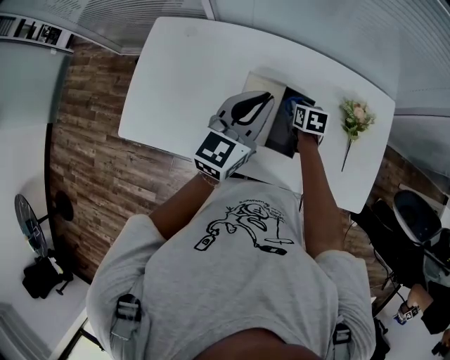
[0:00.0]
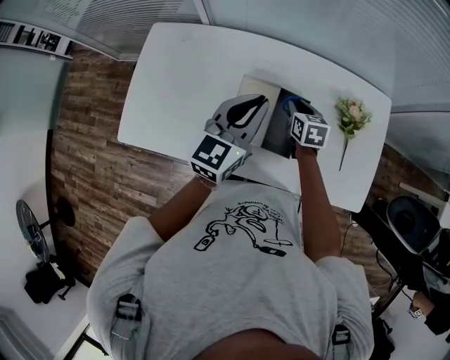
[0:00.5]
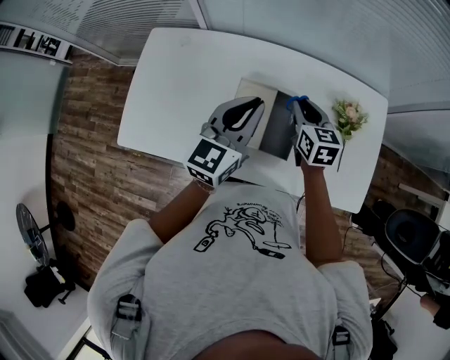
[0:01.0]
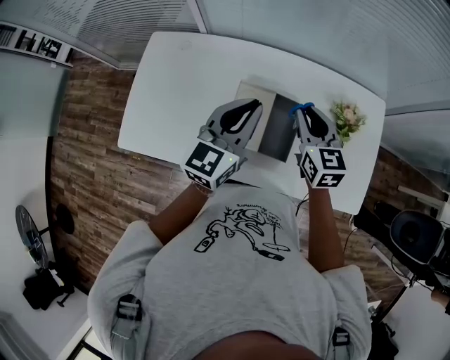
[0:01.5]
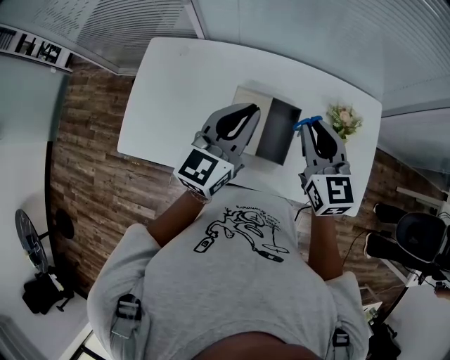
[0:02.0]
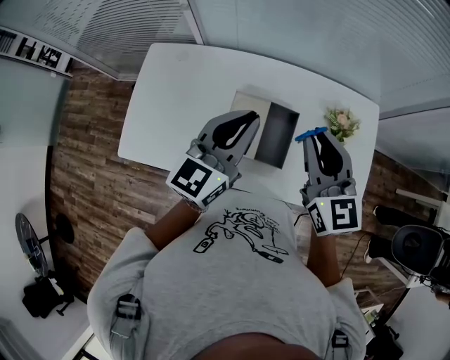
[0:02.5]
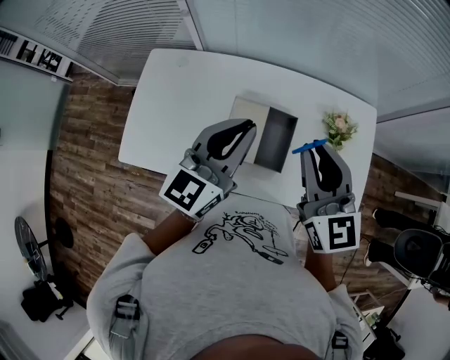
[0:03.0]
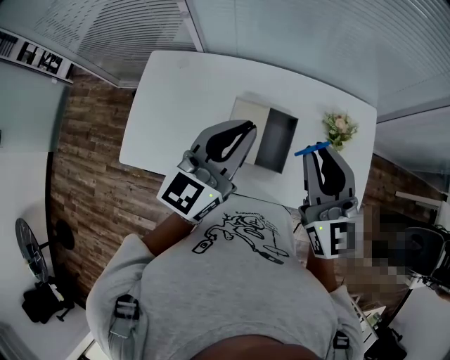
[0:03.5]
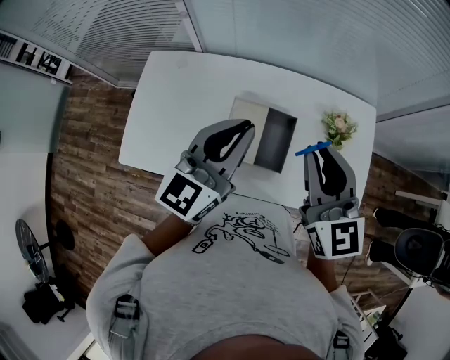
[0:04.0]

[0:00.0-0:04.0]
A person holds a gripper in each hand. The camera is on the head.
0.0 to 2.0 s: The left gripper goes roughly 5 cm upward. The right gripper goes some 30 cm upward, and angles its fingers upward, by about 40 degrees.
2.0 to 4.0 s: The right gripper moves upward and backward, roughly 10 cm, while the left gripper heads upward, covering roughly 5 cm.

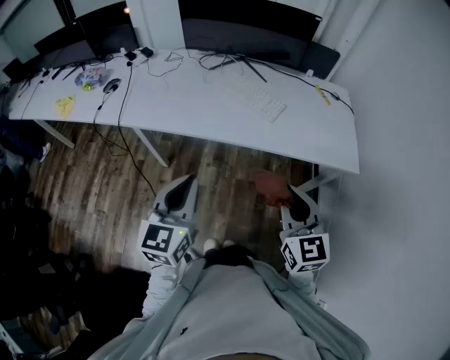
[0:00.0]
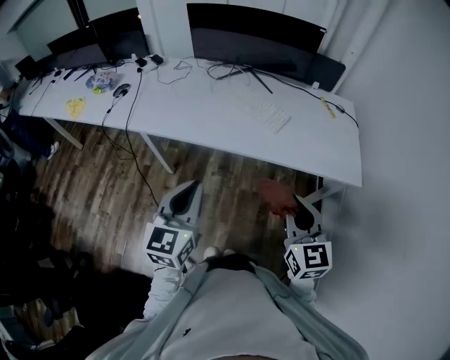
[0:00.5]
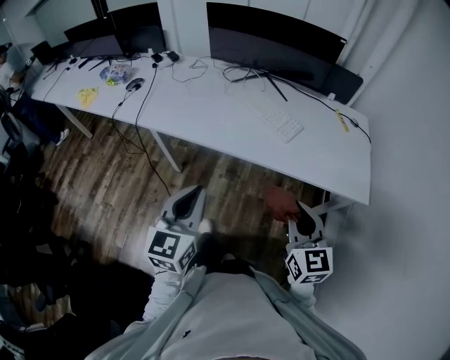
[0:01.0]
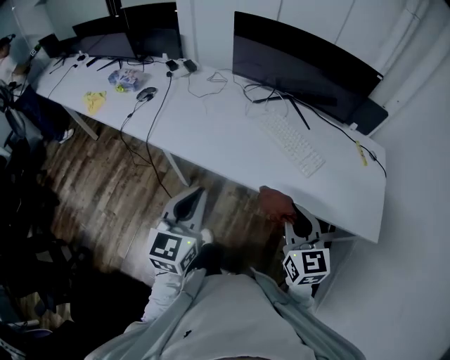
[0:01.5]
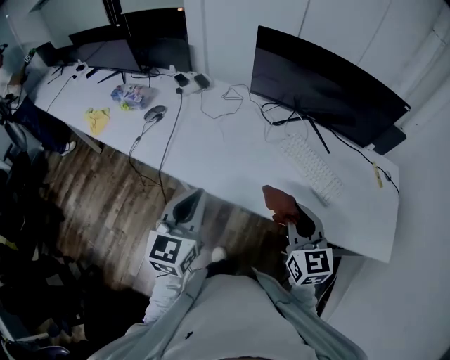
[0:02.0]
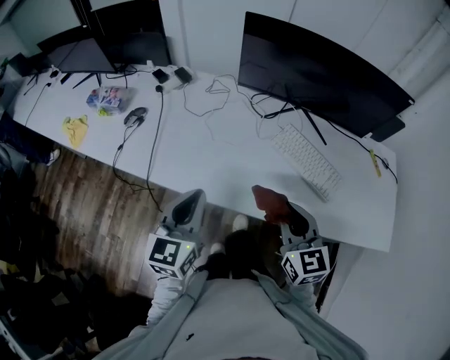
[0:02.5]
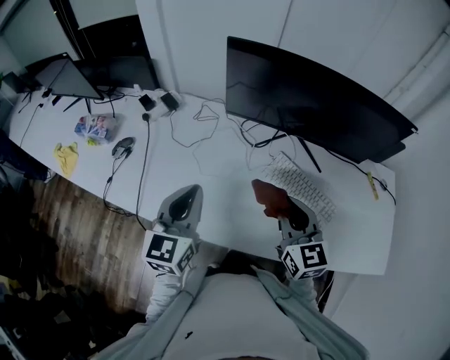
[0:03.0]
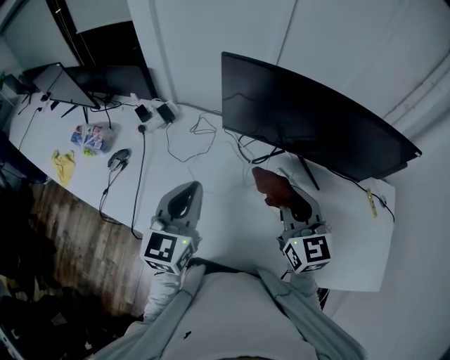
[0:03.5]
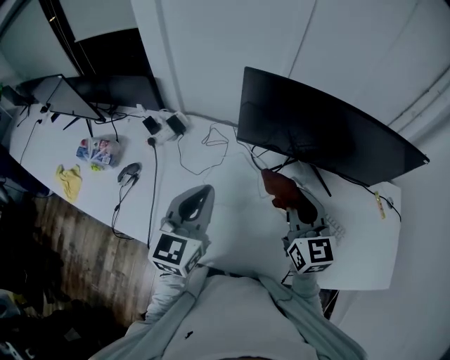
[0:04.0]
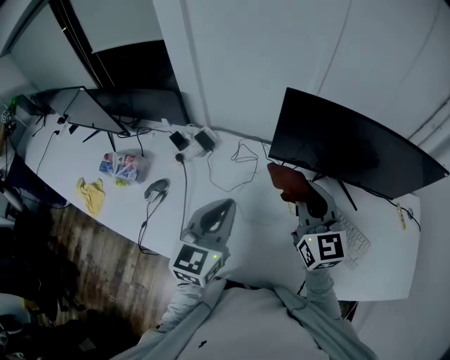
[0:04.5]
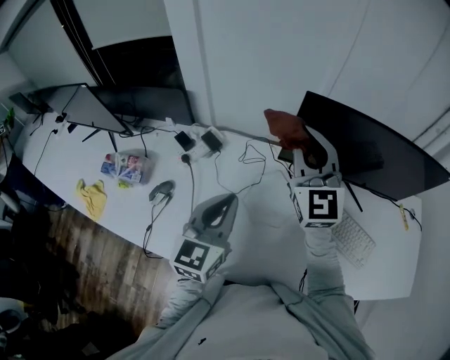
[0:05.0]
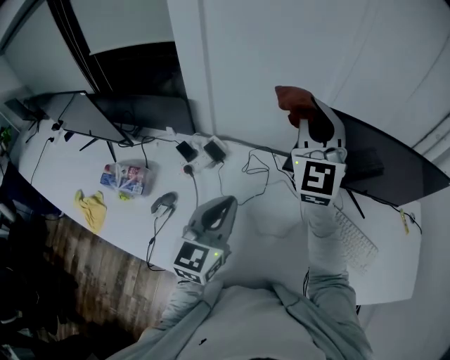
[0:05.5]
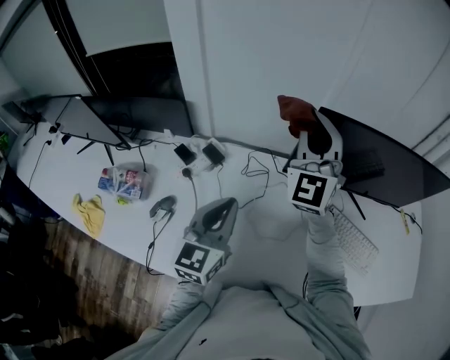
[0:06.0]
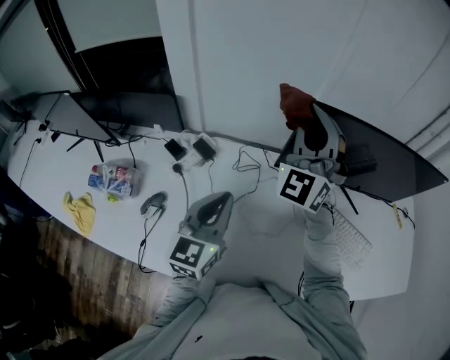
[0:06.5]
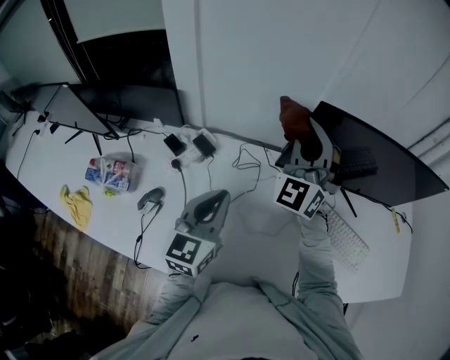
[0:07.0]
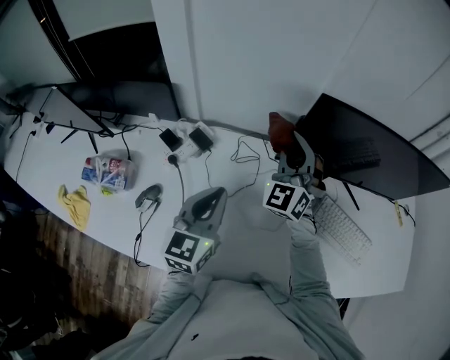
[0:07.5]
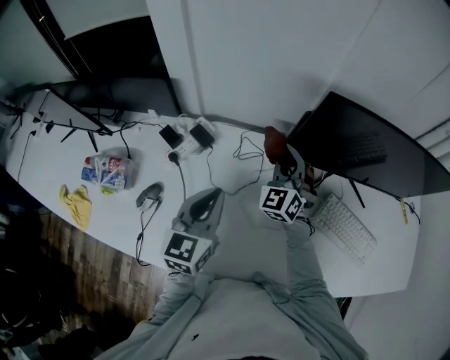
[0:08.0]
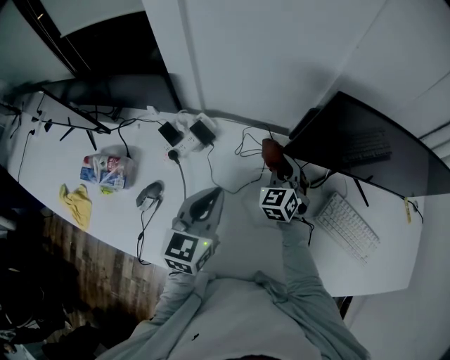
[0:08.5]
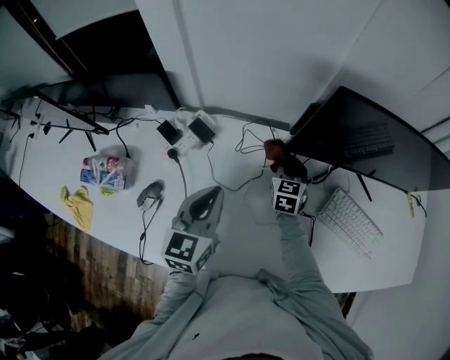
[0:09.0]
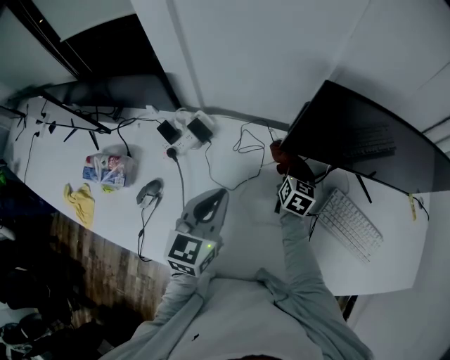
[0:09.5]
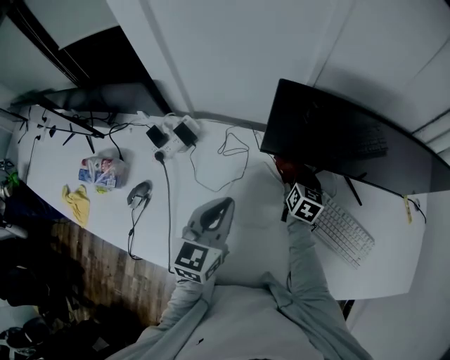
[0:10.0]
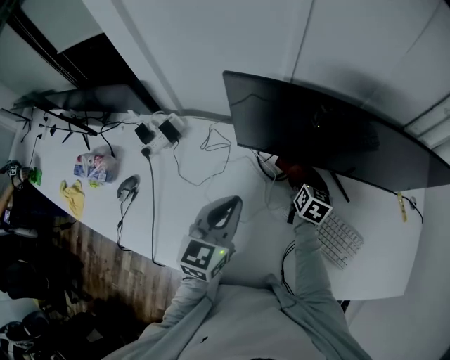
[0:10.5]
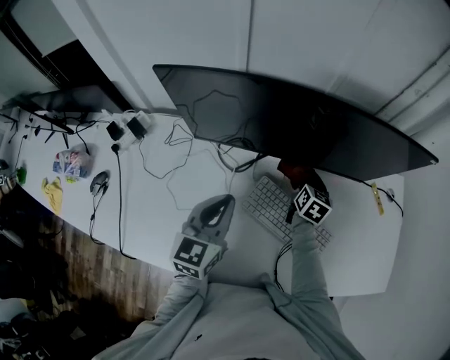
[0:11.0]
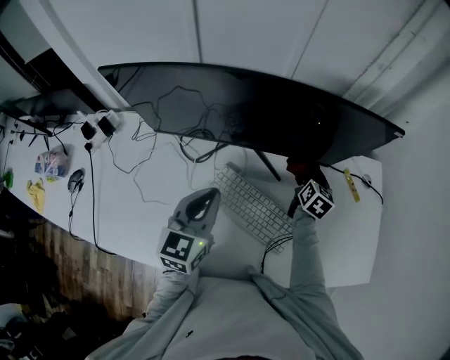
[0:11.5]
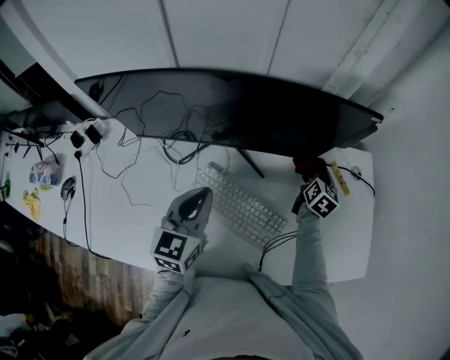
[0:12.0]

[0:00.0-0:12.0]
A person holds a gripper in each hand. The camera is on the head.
0.0 to 2.0 s: Both grippers move forward and to the left, some 30 cm.
2.0 to 4.0 s: Both grippers move forward, about 30 cm.
4.0 to 6.0 s: The left gripper is displaced to the left and forward by some 15 cm. The right gripper travels to the left, forward and upward by about 30 cm, and swivels approximately 50 degrees.
6.0 to 8.0 s: The right gripper goes approximately 25 cm downward, and changes its angle by roughly 30 degrees, while the left gripper travels downward by some 5 cm.
8.0 to 10.0 s: The right gripper goes approximately 20 cm to the right and downward, and twists some 60 degrees clockwise, seen from behind. Meanwhile the left gripper moves to the right, some 10 cm.
10.0 to 12.0 s: Both grippers travel together to the right, roughly 40 cm.

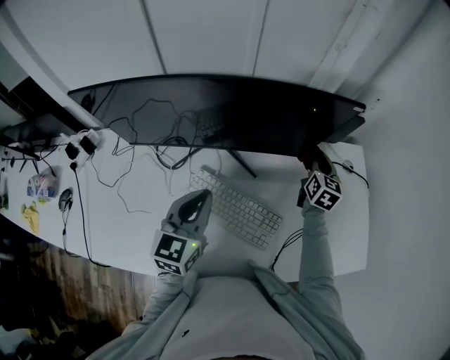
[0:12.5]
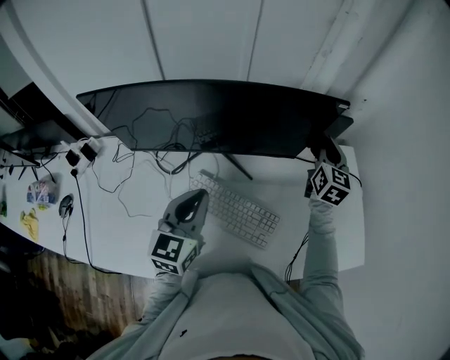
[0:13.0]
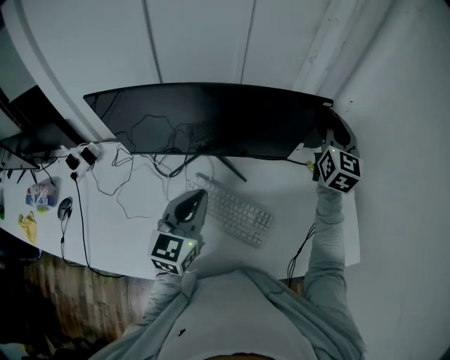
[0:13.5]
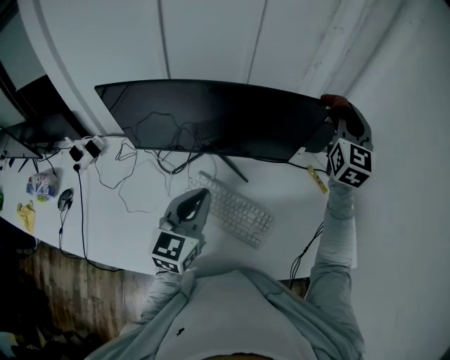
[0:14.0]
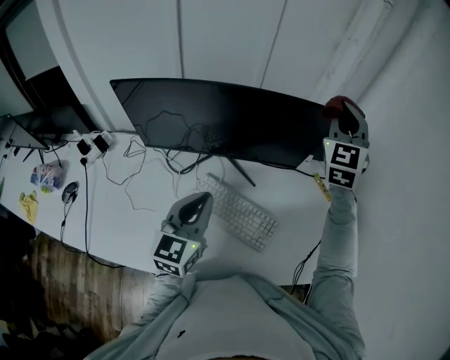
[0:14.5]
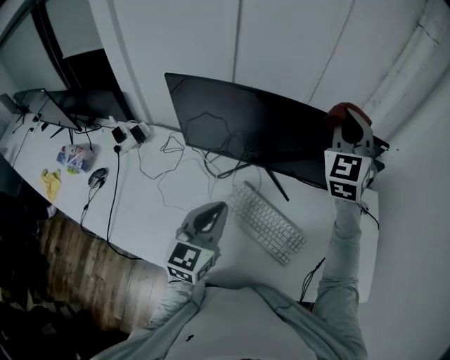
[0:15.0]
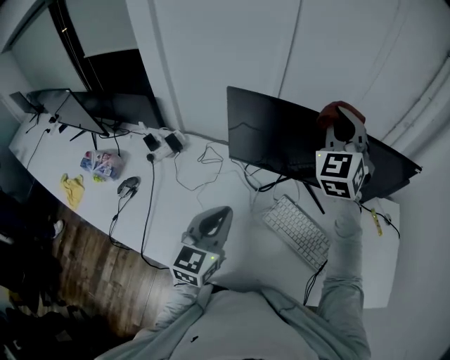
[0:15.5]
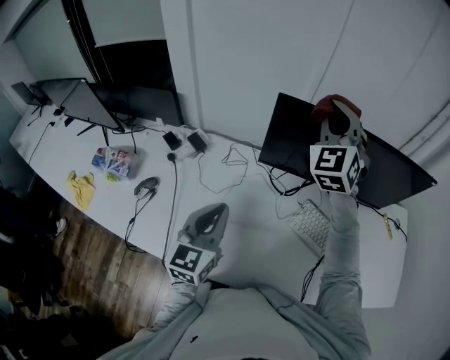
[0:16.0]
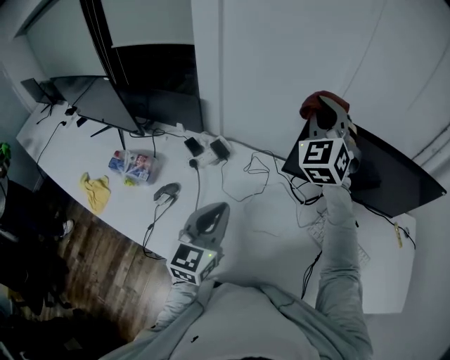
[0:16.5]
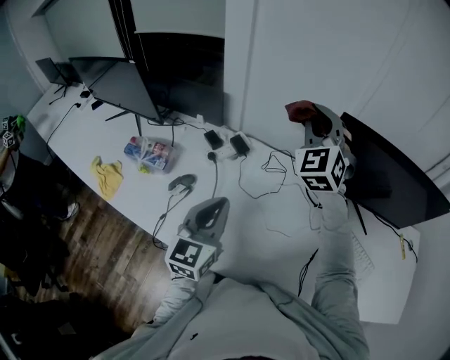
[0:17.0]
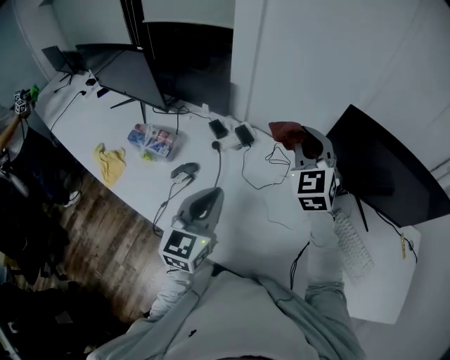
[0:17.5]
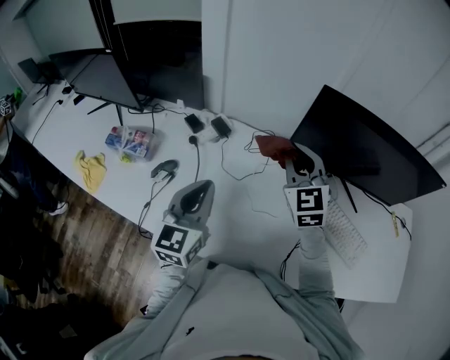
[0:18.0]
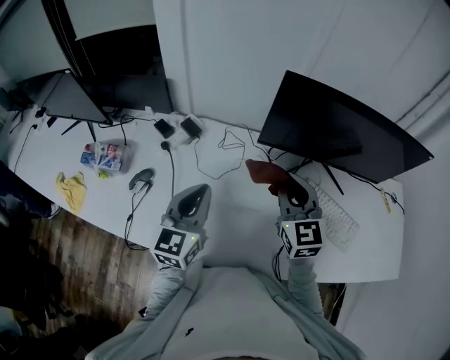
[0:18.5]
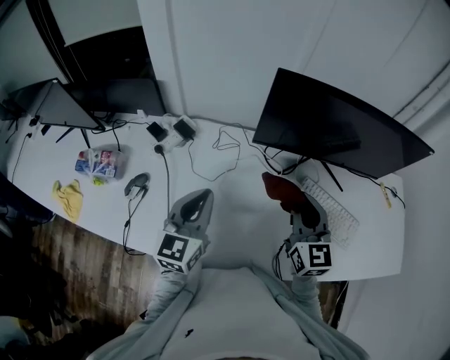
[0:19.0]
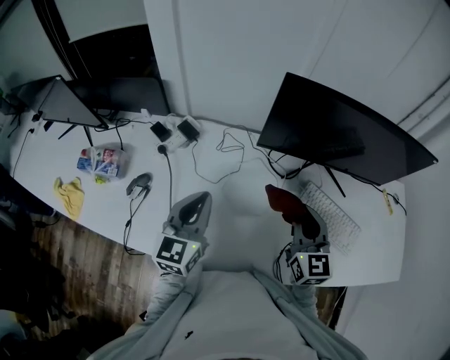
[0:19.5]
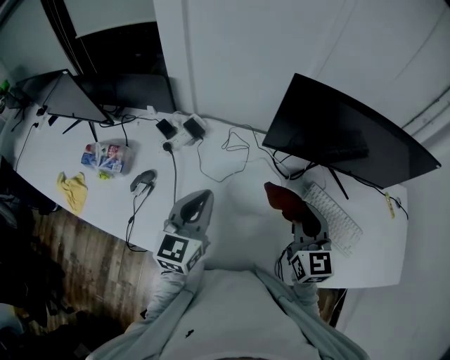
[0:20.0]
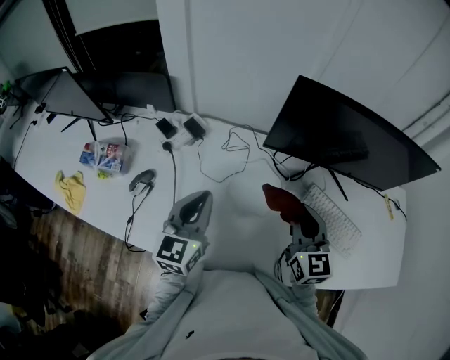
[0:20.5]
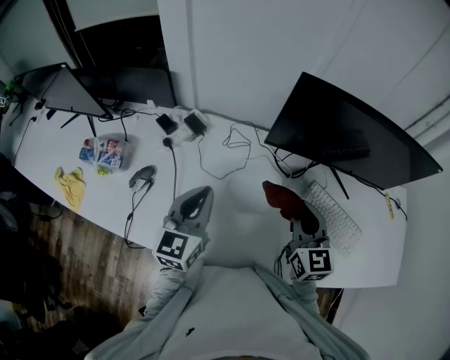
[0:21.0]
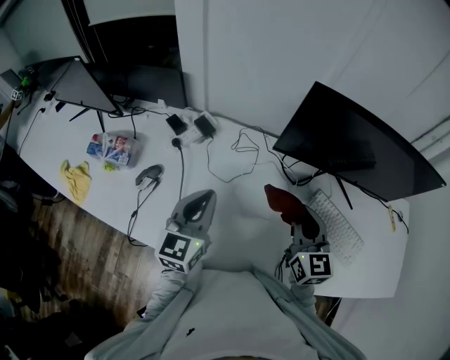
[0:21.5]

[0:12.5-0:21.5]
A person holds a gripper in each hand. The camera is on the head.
12.5 to 14.5 s: The left gripper heads backward and upward, covering approximately 10 cm, while the right gripper moves upward, roughly 30 cm, and rolls counterclockwise, seen from behind, by about 40 degrees.
14.5 to 17.0 s: The pair of grippers is taken to the left, roughly 60 cm. The right gripper changes its angle by roughly 30 degrees.
17.0 to 19.5 s: The right gripper travels backward, downward and to the right by some 35 cm, and rotates around the line of its fingers by approximately 50 degrees, clockwise from behind, while the left gripper shifts about 10 cm to the right.
19.5 to 21.5 s: The grippers make only small movements.

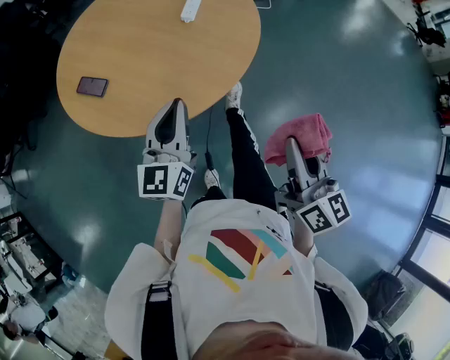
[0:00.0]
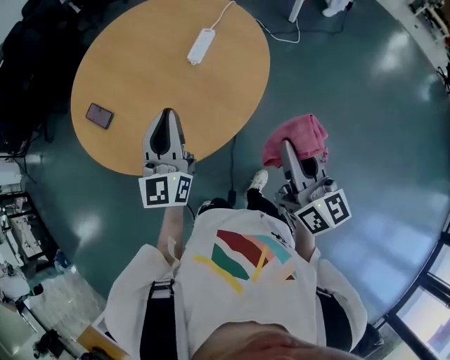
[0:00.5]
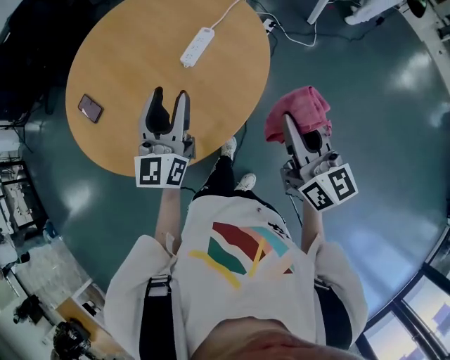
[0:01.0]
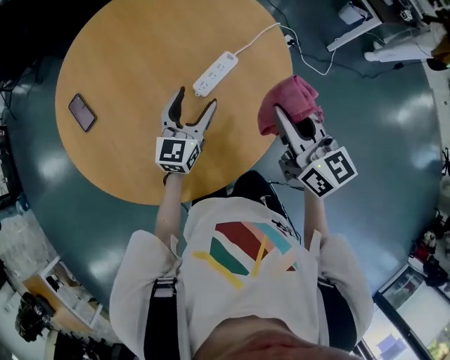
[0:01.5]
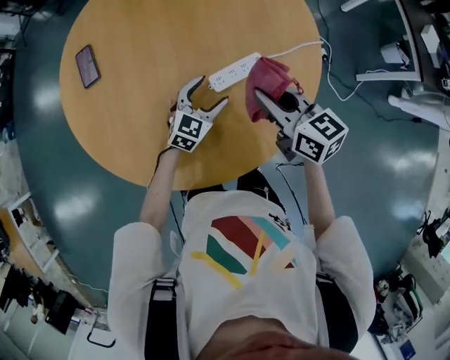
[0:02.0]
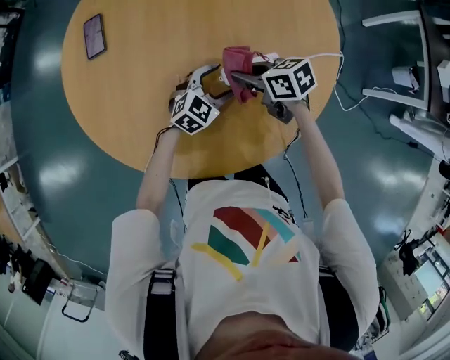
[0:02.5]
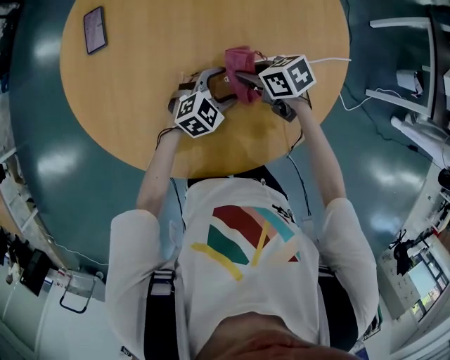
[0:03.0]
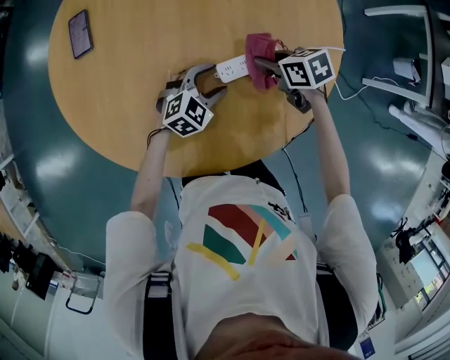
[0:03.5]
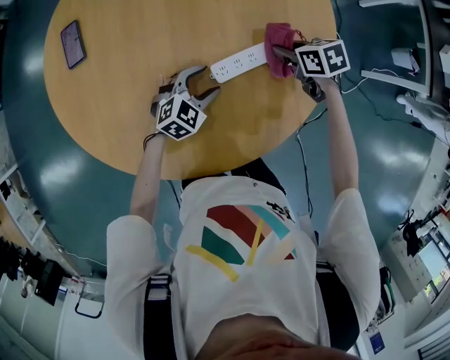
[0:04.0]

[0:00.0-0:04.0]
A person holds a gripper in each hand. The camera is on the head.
0.0 to 2.0 s: The two grippers travel together, roughly 60 cm. The left gripper swivels some 40 degrees, and opens; the right gripper swivels some 80 degrees.
2.0 to 4.0 s: The right gripper shifts approximately 15 cm downward, and tips its fingers downward by about 30 degrees.
